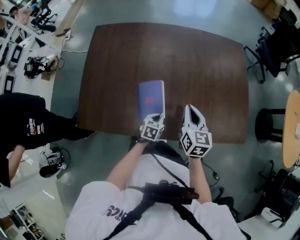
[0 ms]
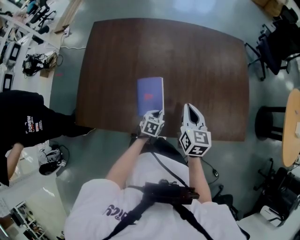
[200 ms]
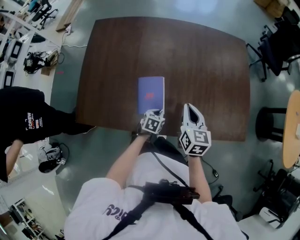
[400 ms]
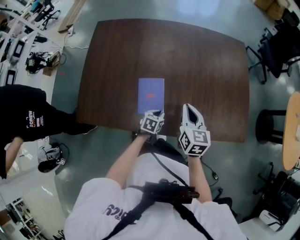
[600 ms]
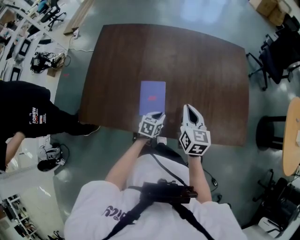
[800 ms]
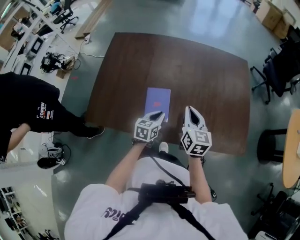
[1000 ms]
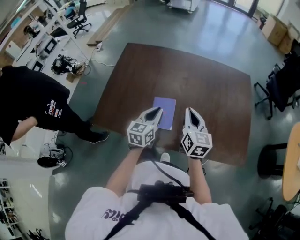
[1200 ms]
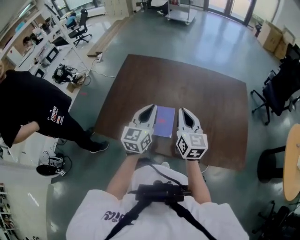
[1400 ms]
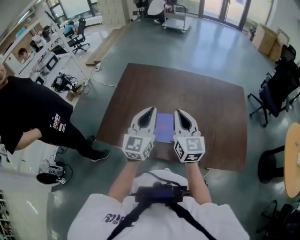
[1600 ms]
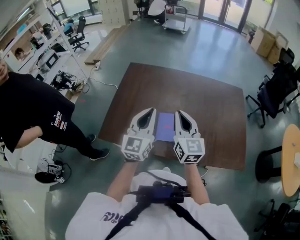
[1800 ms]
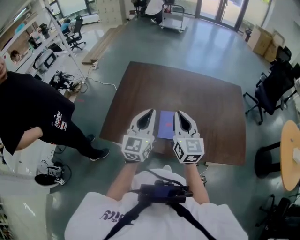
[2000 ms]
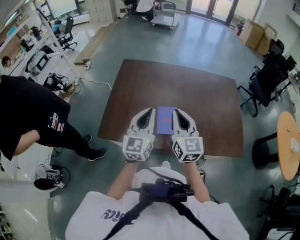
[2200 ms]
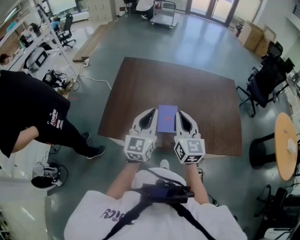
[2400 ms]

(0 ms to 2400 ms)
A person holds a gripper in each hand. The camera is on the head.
0 ms - 1200 ms: The right gripper travels upward by approximately 10 cm. The left gripper is displaced upward by about 25 cm, and angles its fingers upward, by some 30 degrees.
1200 ms - 2400 ms: The right gripper is displaced to the left, upward and backward by approximately 20 cm. Meanwhile the left gripper goes some 25 cm upward, to the left and backward, and changes its angle by about 20 degrees.

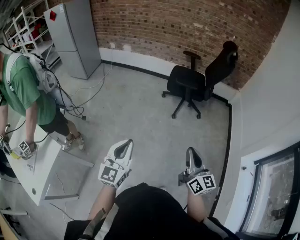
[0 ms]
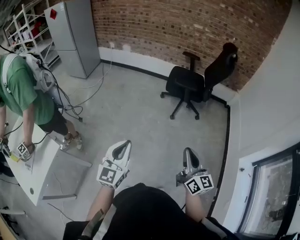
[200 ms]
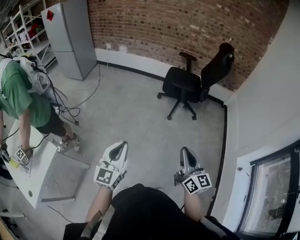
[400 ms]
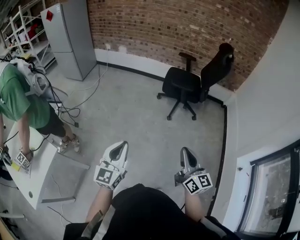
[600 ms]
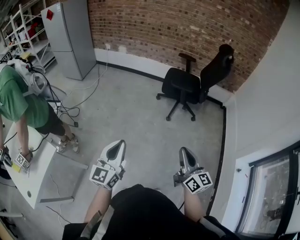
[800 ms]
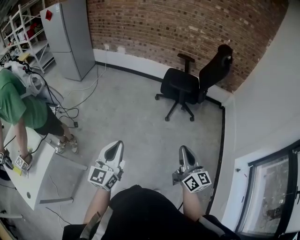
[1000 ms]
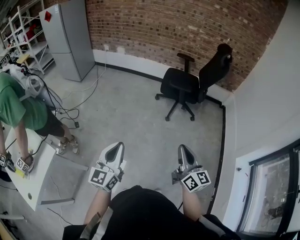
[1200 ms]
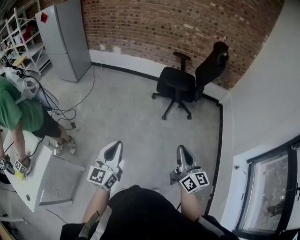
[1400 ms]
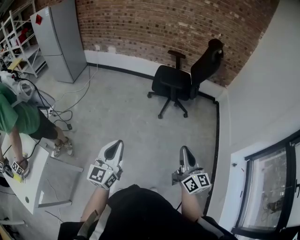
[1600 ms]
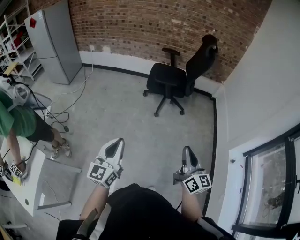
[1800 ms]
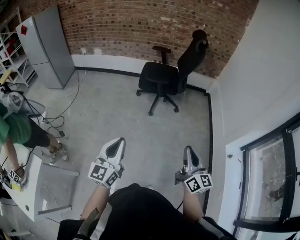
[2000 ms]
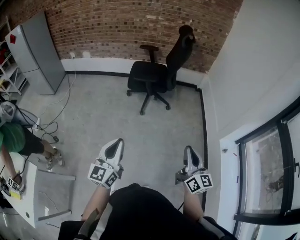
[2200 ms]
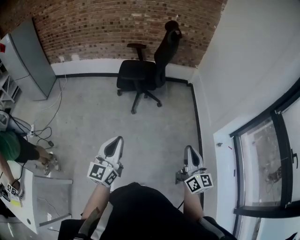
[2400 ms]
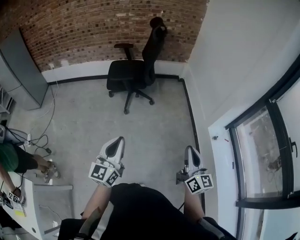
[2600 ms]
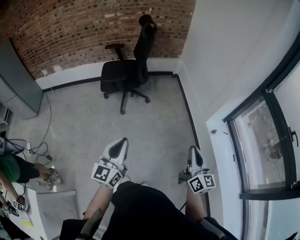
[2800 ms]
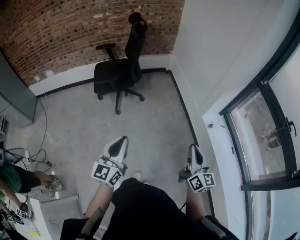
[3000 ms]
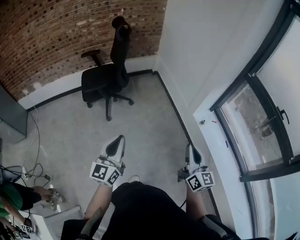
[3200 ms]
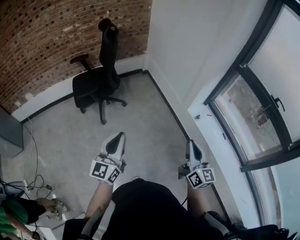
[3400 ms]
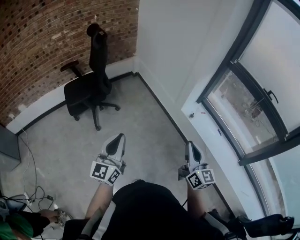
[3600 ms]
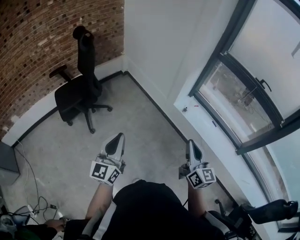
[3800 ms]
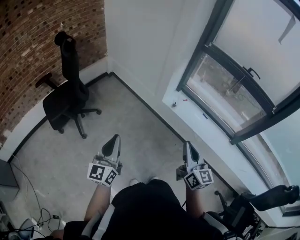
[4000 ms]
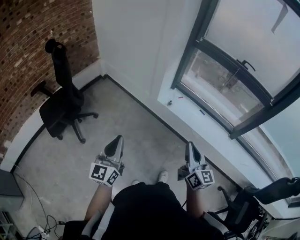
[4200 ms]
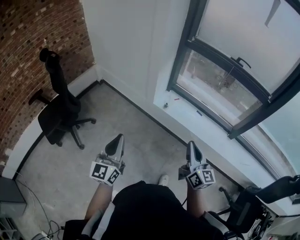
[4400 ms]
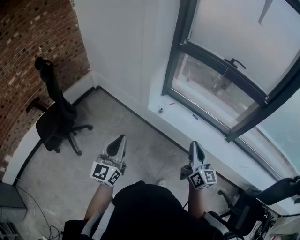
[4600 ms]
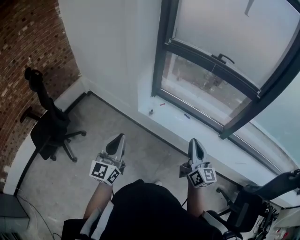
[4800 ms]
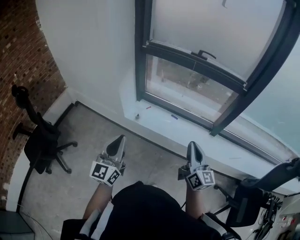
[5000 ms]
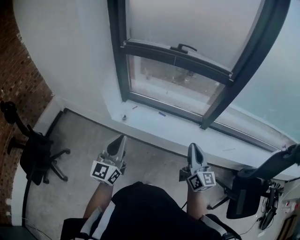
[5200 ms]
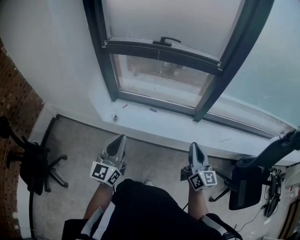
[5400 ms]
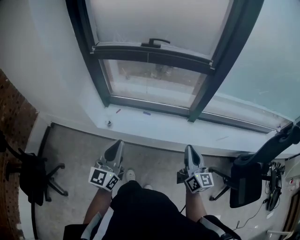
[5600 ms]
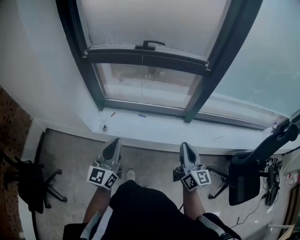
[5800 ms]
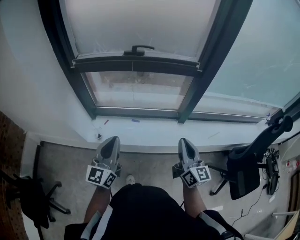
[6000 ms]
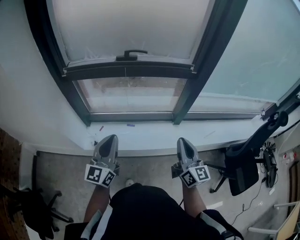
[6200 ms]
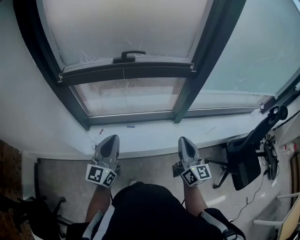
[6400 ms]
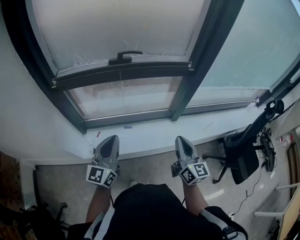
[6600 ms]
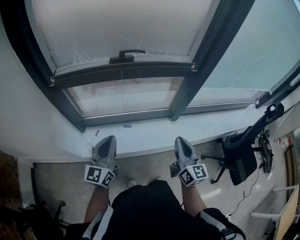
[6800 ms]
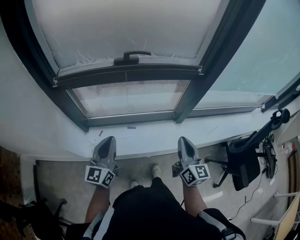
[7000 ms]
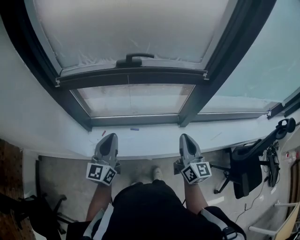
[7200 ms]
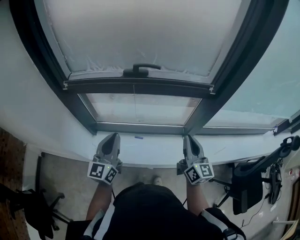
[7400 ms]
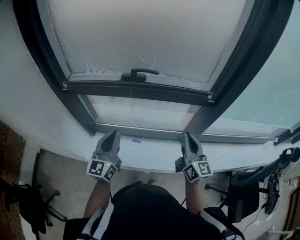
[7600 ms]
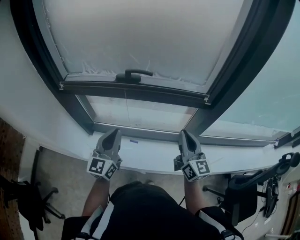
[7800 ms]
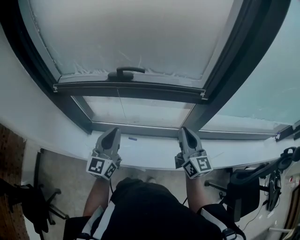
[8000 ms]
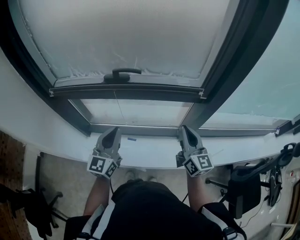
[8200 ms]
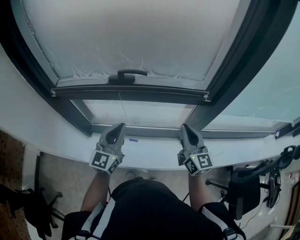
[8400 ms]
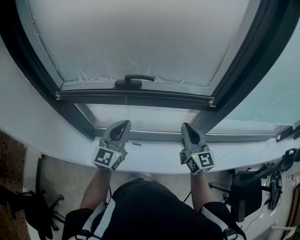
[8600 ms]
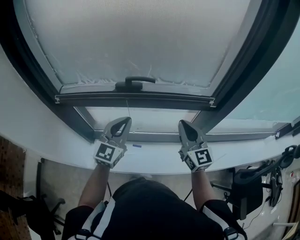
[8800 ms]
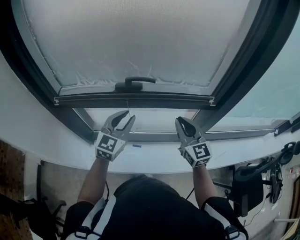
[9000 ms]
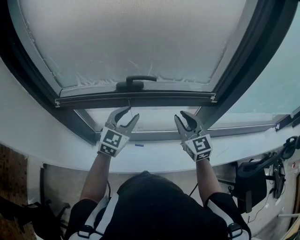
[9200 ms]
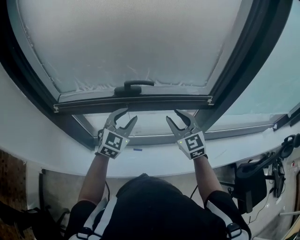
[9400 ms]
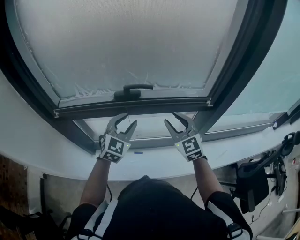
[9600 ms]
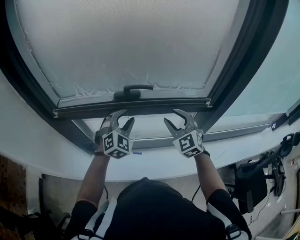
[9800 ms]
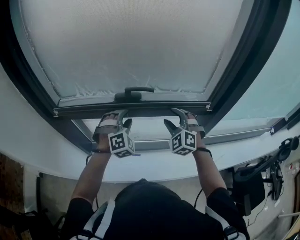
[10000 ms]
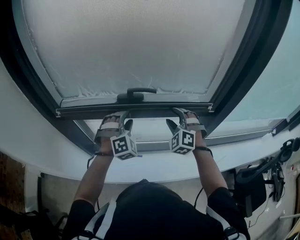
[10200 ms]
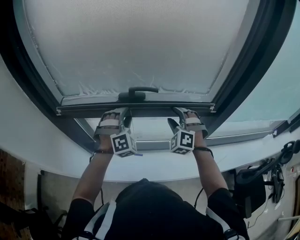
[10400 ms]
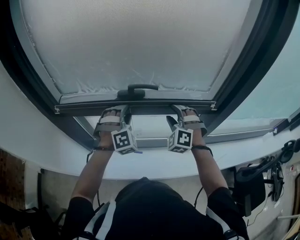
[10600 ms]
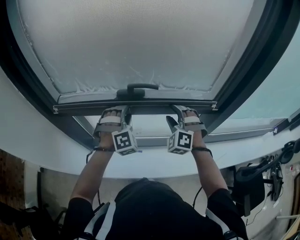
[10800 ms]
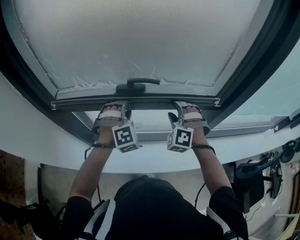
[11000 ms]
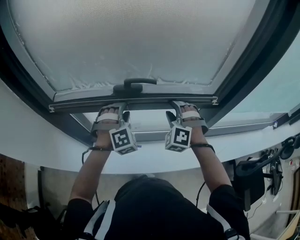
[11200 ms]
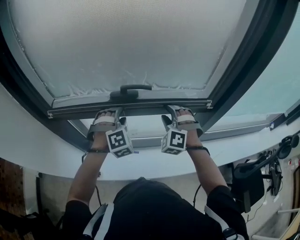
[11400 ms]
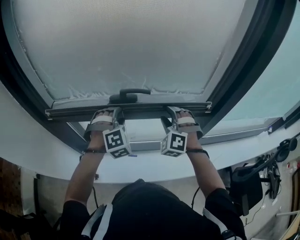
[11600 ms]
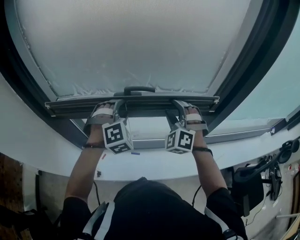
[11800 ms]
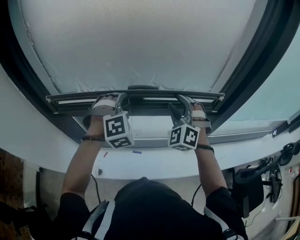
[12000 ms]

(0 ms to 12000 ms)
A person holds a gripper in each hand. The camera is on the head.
0 ms - 1600 ms: The grippers stay close to where they were, moving slightly.
1600 ms - 3000 ms: The right gripper ends up about 30 cm from where it was, and changes its angle by about 30 degrees; the left gripper moves some 30 cm, and turns by about 30 degrees.
3000 ms - 4400 ms: The right gripper changes place by roughly 15 cm, and swivels some 40 degrees. The left gripper shifts by some 20 cm, and swivels approximately 40 degrees.
4400 ms - 6000 ms: The right gripper shifts by some 35 cm, and turns by roughly 30 degrees, while the left gripper moves some 50 cm, and changes its angle by approximately 40 degrees.
6000 ms - 7600 ms: The grippers both shift forward by roughly 20 cm.
7600 ms - 9000 ms: The grippers both shift forward by roughly 10 cm. The left gripper changes its angle by about 30 degrees, and opens up, while the right gripper turns by roughly 20 degrees.
9000 ms - 10400 ms: Both grippers move forward, roughly 5 cm. The left gripper rolls clockwise, seen from behind, by some 60 degrees, and opens; the right gripper twists roughly 60 degrees counterclockwise, seen from behind, and opens its fingers.
10400 ms - 12000 ms: Both grippers travel together upward, about 10 cm.

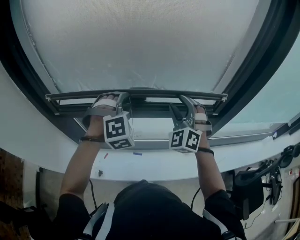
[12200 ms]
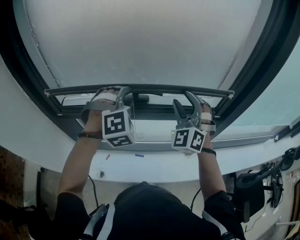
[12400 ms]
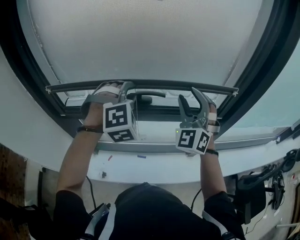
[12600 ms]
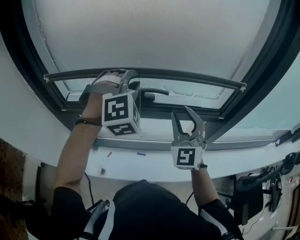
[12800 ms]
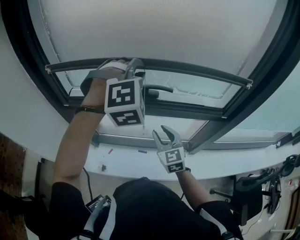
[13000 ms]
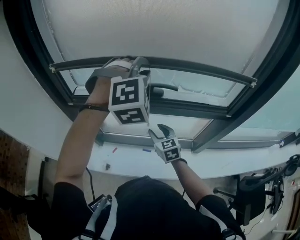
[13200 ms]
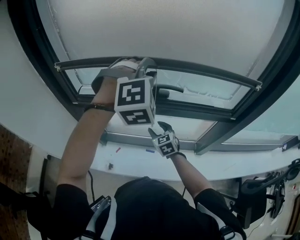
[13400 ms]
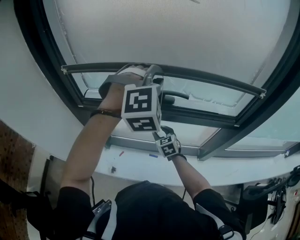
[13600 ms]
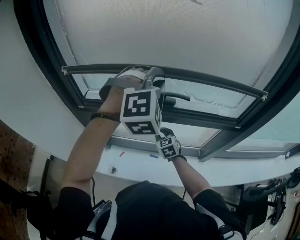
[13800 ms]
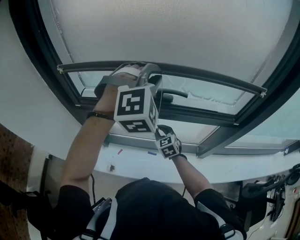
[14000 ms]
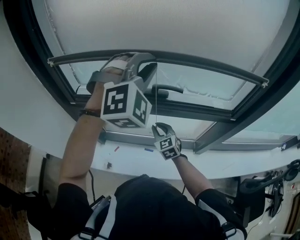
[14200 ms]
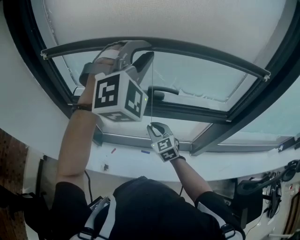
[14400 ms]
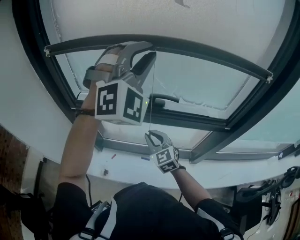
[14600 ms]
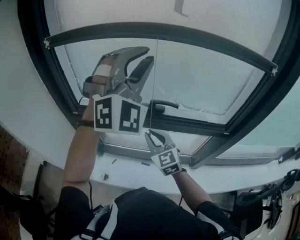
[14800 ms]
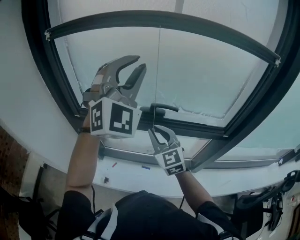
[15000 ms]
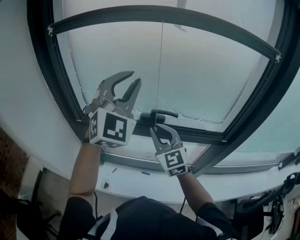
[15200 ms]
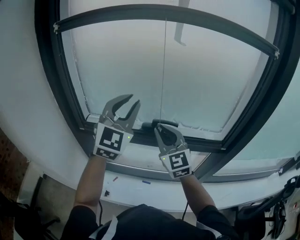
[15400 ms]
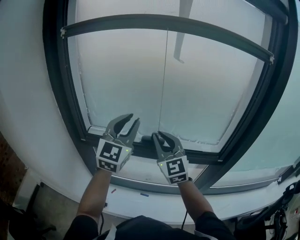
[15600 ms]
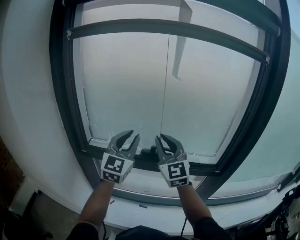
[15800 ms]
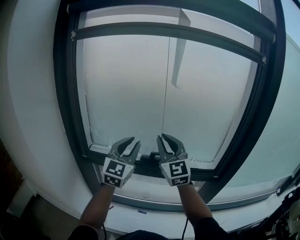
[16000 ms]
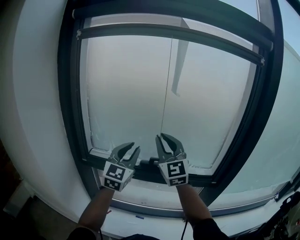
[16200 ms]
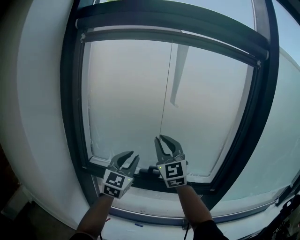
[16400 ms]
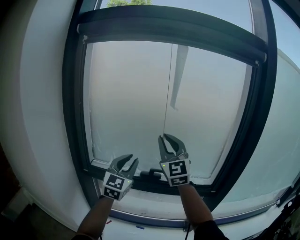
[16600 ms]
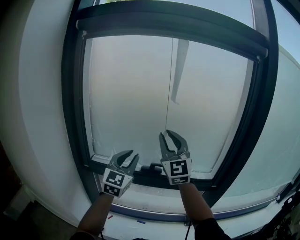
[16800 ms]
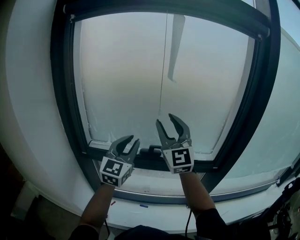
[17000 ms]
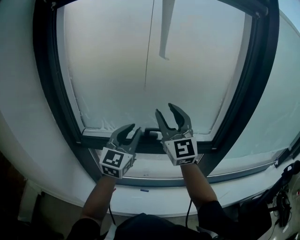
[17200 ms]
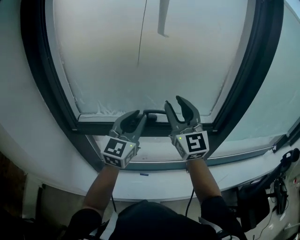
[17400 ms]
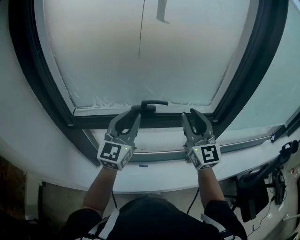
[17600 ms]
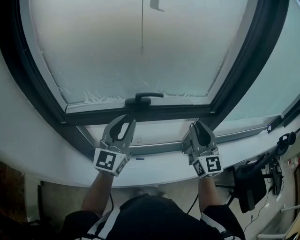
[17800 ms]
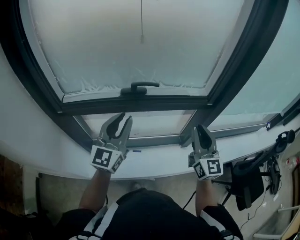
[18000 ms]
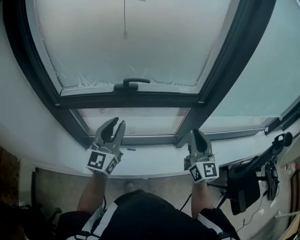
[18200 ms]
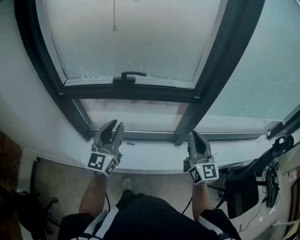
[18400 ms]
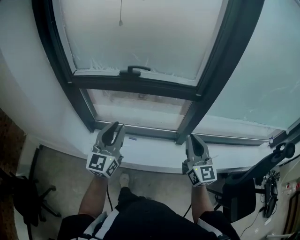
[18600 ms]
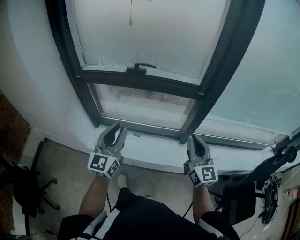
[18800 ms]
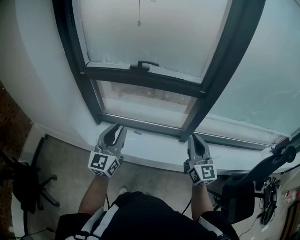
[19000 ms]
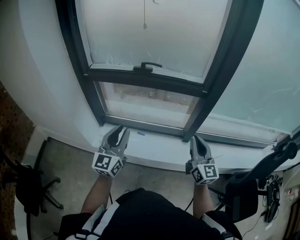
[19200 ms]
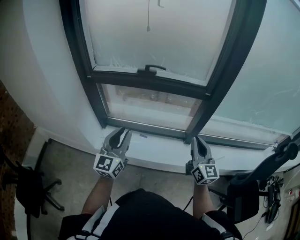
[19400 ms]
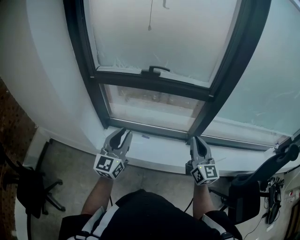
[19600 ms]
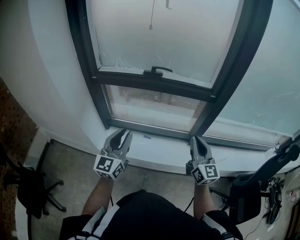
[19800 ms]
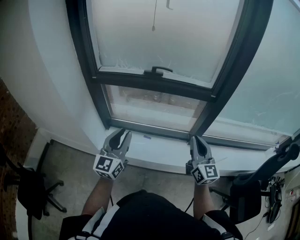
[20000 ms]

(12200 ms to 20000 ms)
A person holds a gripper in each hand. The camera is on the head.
12200 ms - 13800 ms: The right gripper travels downward and to the left by about 30 cm, twists approximately 50 degrees clockwise, seen from behind, and closes. The left gripper goes about 10 cm upward.
13800 ms - 15400 ms: The left gripper goes approximately 10 cm to the left and upward, and angles its fingers upward, by about 30 degrees, while the right gripper is displaced upward by about 30 cm, and tips its fingers upward by roughly 30 degrees.
15400 ms - 16800 ms: The right gripper is displaced upward by about 20 cm, and turns by about 20 degrees.
16800 ms - 18400 ms: The left gripper shifts approximately 25 cm backward, downward and to the right. Meanwhile the right gripper heads to the right, downward and backward, covering some 40 cm, changes its angle by roughly 30 degrees, and opens, then closes again.
18400 ms - 20000 ms: The left gripper shifts approximately 15 cm backward and to the left; the right gripper travels backward and to the left by roughly 10 cm.

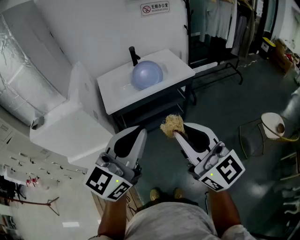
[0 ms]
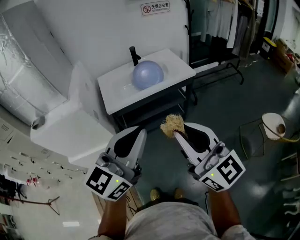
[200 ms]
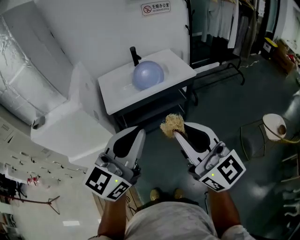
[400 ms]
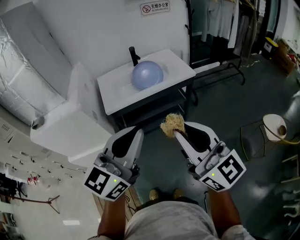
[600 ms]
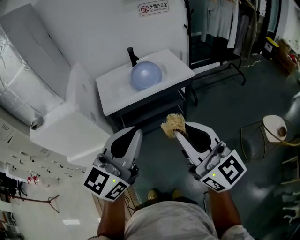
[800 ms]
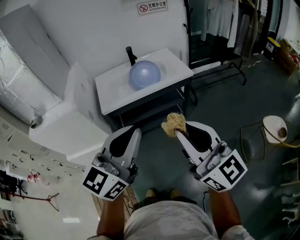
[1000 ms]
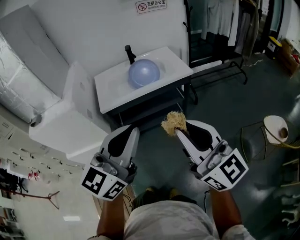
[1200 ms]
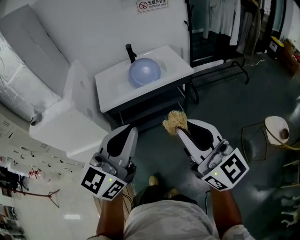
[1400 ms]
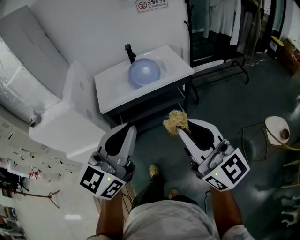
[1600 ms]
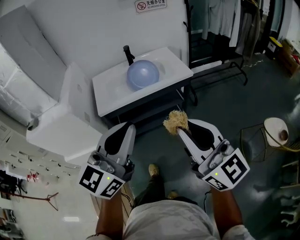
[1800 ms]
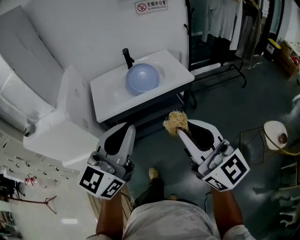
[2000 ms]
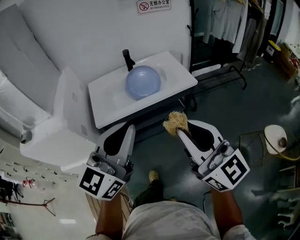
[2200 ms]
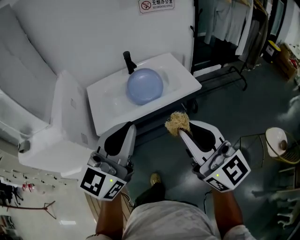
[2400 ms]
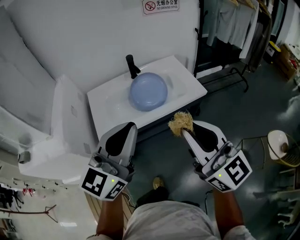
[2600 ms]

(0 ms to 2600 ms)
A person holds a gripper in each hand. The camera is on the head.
0 ms - 1200 ms: Both grippers move to the right, approximately 5 cm.
1200 ms - 2600 ms: Both grippers move forward, roughly 25 cm.
